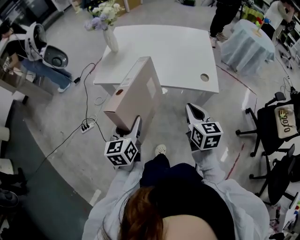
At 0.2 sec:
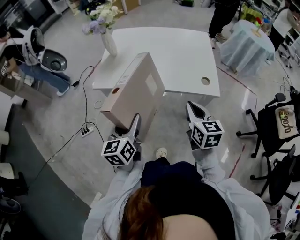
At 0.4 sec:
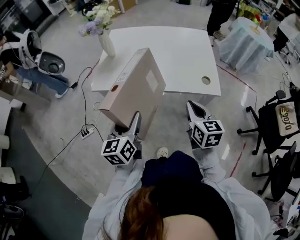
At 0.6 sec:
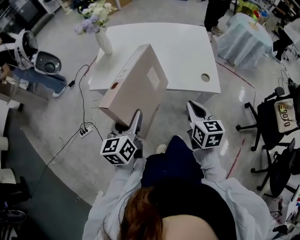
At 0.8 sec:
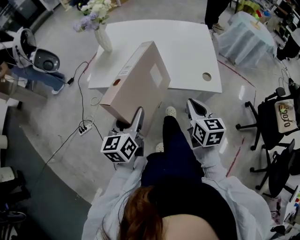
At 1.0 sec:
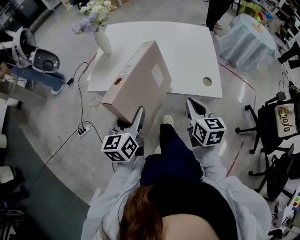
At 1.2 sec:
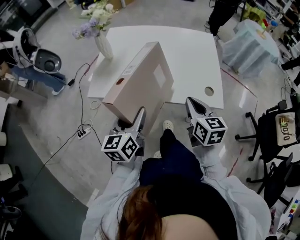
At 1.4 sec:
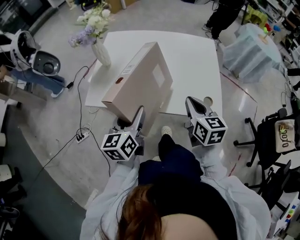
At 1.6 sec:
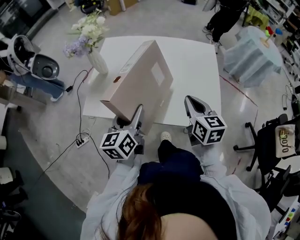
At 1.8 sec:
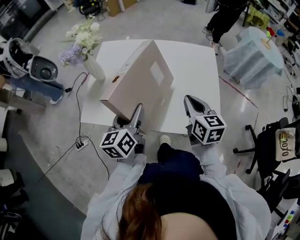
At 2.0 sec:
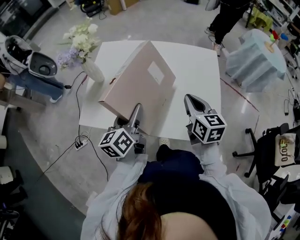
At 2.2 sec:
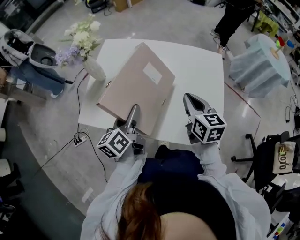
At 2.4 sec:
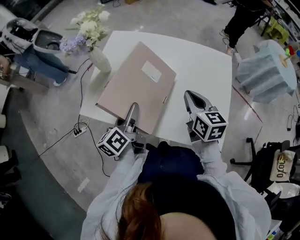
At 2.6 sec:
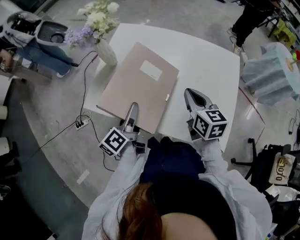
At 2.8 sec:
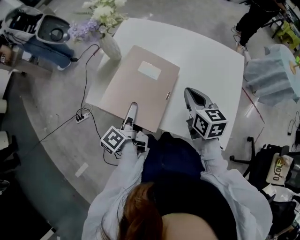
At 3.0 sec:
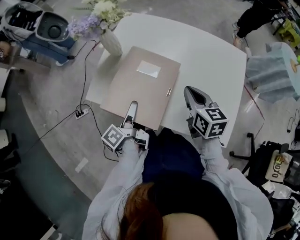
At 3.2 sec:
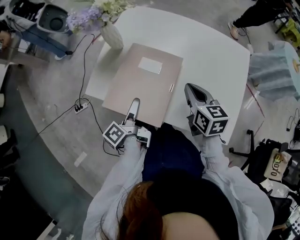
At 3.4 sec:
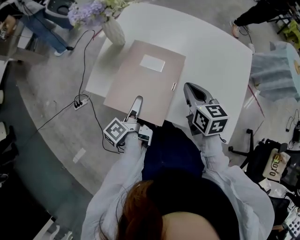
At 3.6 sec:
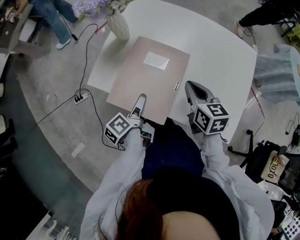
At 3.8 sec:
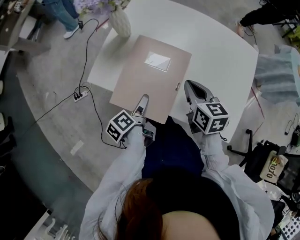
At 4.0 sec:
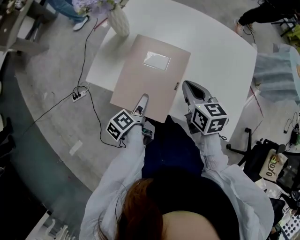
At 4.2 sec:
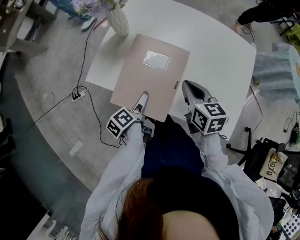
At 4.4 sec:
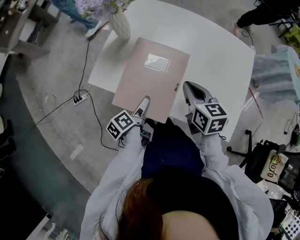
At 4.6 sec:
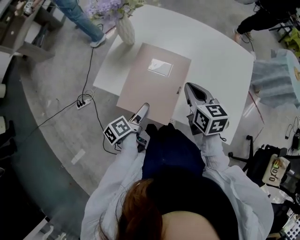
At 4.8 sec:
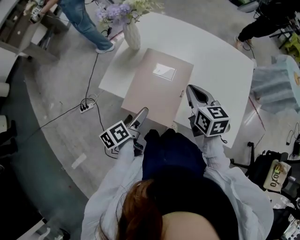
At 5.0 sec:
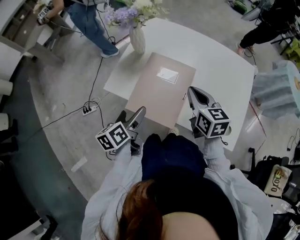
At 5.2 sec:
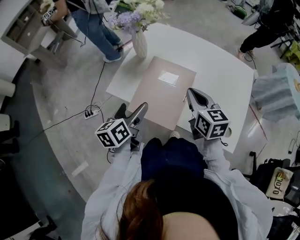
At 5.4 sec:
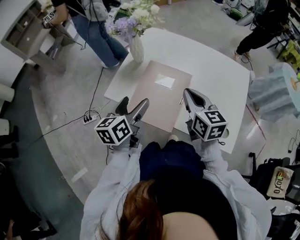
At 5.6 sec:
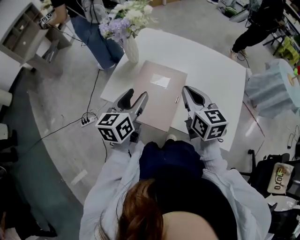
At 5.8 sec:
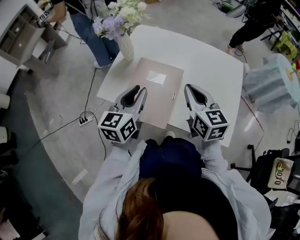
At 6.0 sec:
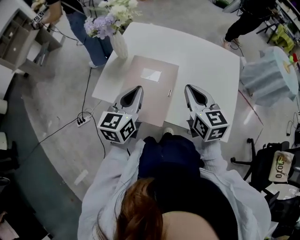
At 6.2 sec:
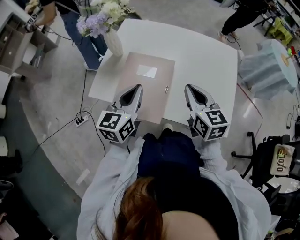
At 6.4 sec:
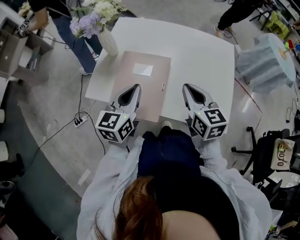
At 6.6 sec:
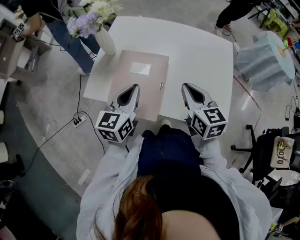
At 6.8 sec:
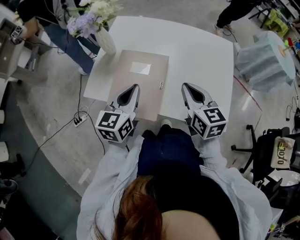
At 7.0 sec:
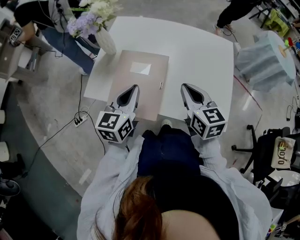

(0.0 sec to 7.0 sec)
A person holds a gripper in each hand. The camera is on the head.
0.0 sec - 1.4 sec: The two grippers go some 20 cm forward.
1.4 sec - 2.8 sec: The left gripper moves forward and downward, roughly 15 cm, and rolls counterclockwise, seen from behind, by about 50 degrees. Meanwhile the right gripper travels forward by about 20 cm.
2.8 sec - 4.2 sec: The left gripper goes some 10 cm downward, rotates approximately 20 degrees, and opens. The right gripper goes roughly 5 cm to the left.
4.2 sec - 5.6 sec: The right gripper is displaced upward by roughly 10 cm. Meanwhile the left gripper is displaced upward by some 25 cm, twists some 60 degrees clockwise, seen from behind, and closes.
5.6 sec - 7.0 sec: The grippers both shift to the right by some 5 cm. The left gripper closes up.

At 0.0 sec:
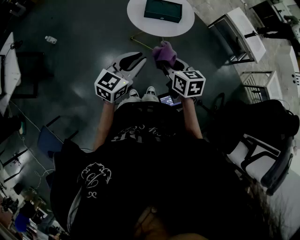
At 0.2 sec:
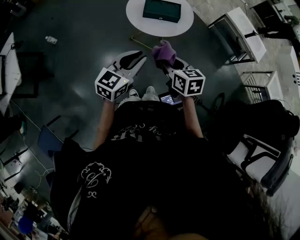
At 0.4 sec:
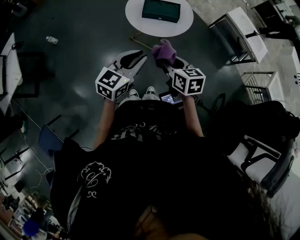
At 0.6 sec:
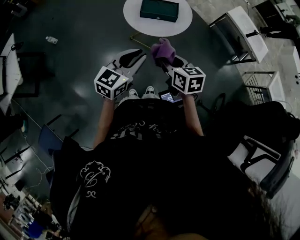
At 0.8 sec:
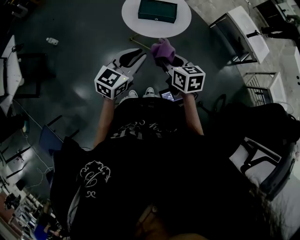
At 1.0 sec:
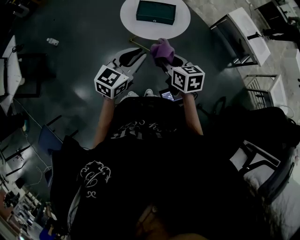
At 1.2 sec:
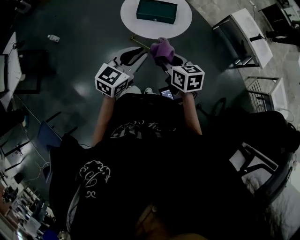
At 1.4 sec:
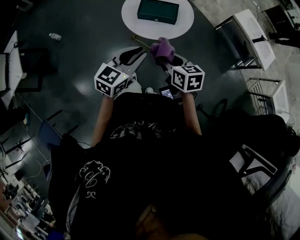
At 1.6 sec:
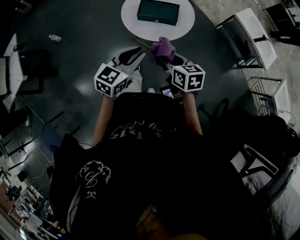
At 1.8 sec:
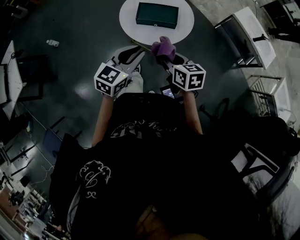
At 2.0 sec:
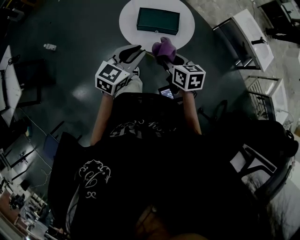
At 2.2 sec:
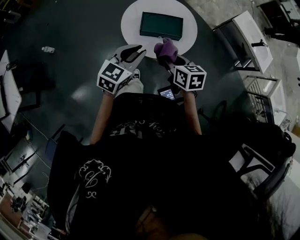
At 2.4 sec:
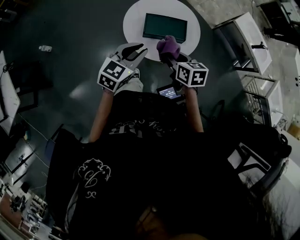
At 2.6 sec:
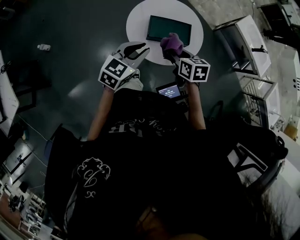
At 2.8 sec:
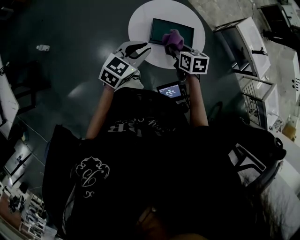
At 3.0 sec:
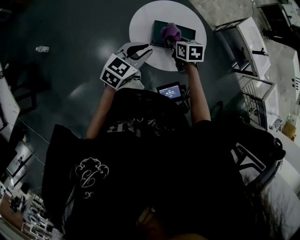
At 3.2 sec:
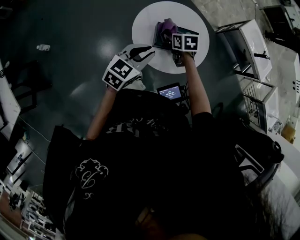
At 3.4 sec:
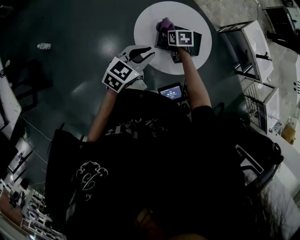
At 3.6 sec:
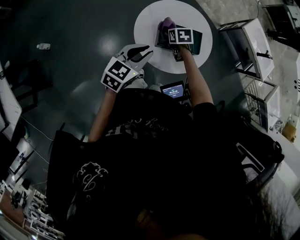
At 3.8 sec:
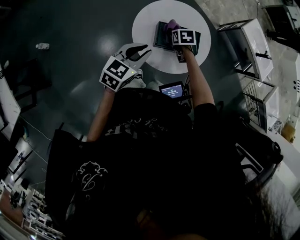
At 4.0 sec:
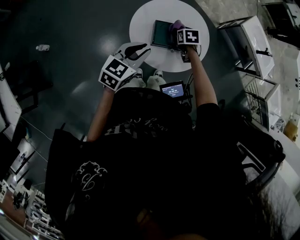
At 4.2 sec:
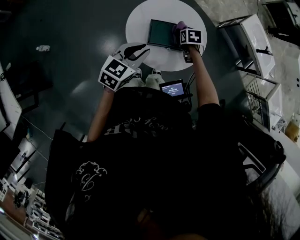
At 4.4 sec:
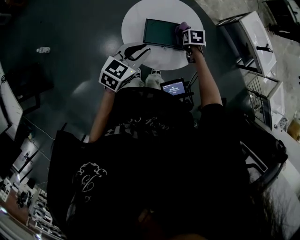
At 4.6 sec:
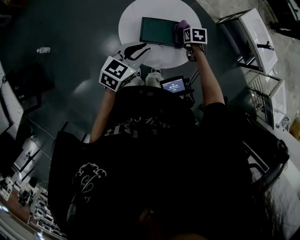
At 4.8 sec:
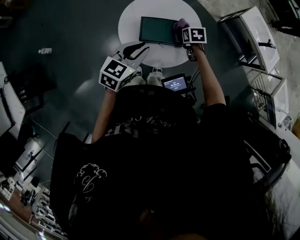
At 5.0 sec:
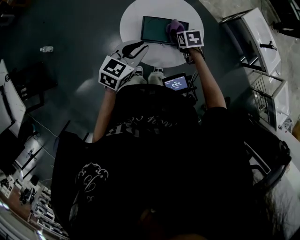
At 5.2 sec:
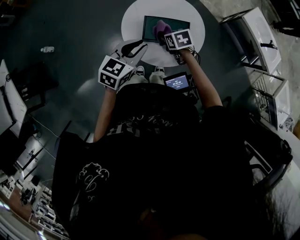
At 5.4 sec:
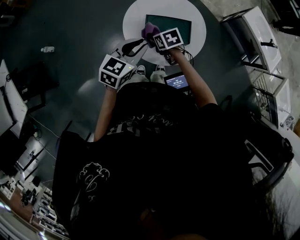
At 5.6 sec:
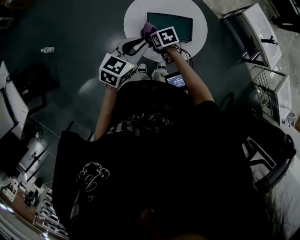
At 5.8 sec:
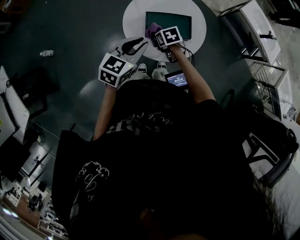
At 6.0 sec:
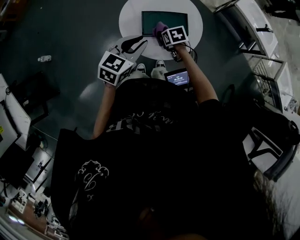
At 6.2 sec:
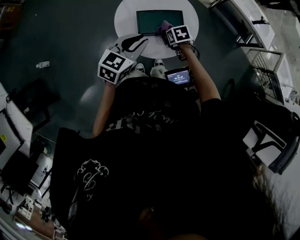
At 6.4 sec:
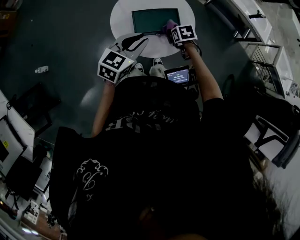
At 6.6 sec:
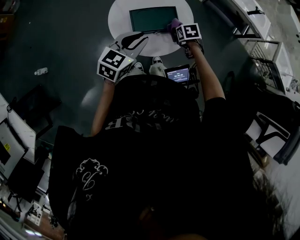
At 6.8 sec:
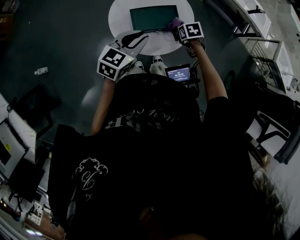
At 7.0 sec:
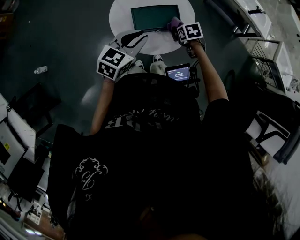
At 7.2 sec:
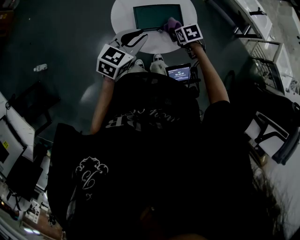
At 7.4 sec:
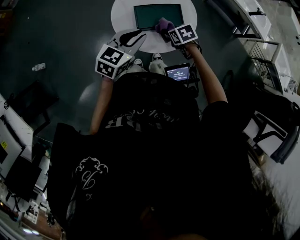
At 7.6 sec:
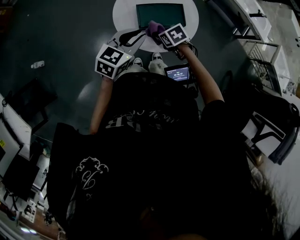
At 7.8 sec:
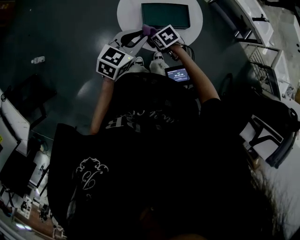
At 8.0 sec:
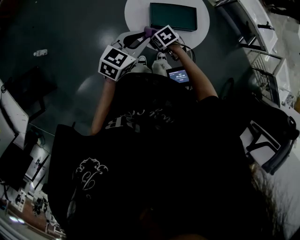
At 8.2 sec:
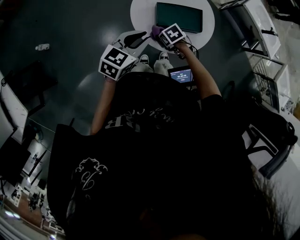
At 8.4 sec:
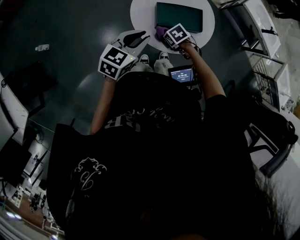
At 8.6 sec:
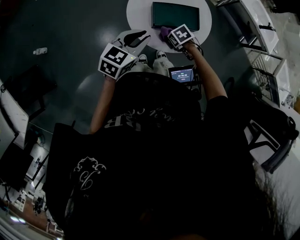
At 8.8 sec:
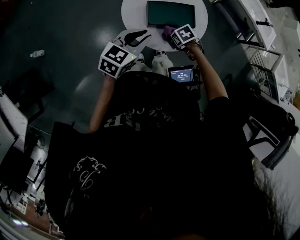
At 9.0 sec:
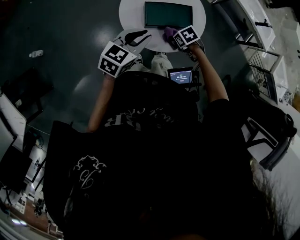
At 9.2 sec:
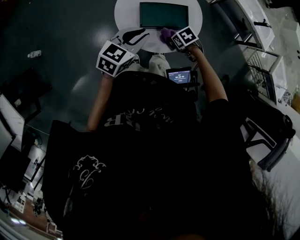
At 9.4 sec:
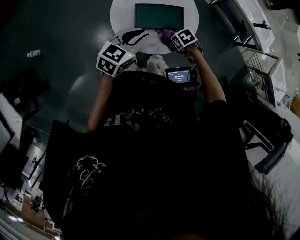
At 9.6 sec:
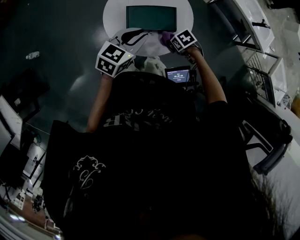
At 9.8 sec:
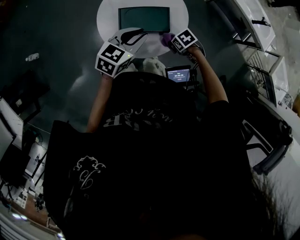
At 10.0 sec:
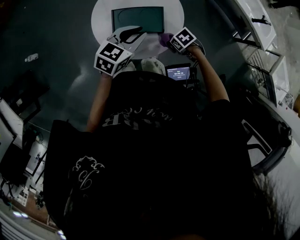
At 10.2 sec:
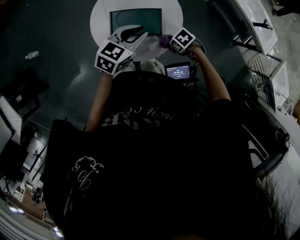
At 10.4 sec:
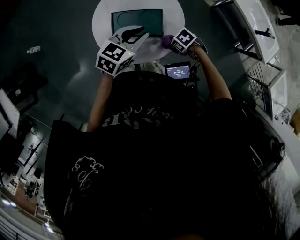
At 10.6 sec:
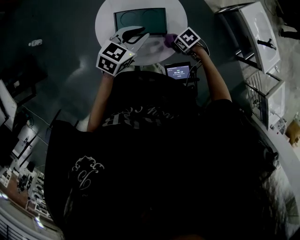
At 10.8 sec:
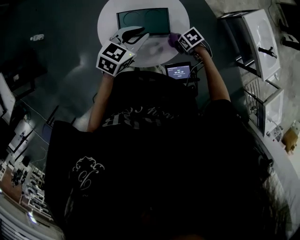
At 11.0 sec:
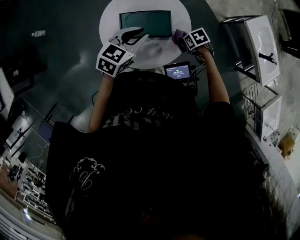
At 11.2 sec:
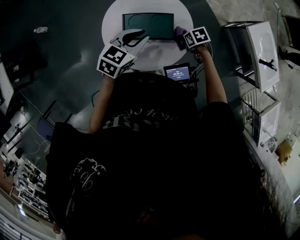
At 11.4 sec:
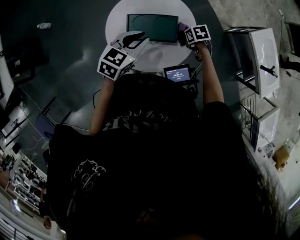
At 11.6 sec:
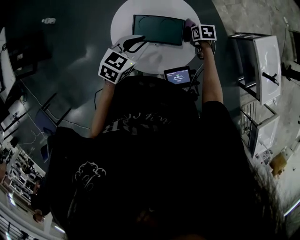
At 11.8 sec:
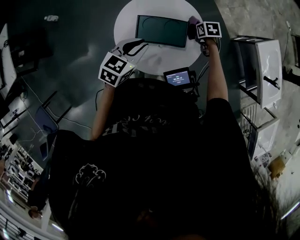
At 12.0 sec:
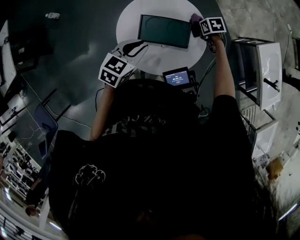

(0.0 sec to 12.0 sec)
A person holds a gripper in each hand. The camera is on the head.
0.0 sec - 1.6 sec: The two grippers go approximately 10 cm forward and to the right.
1.6 sec - 3.0 sec: The left gripper shifts approximately 25 cm forward and to the left. Meanwhile the right gripper goes about 30 cm forward.
3.0 sec - 4.4 sec: The right gripper moves to the right, downward and forward, some 15 cm, and changes its angle by about 20 degrees.
4.4 sec - 6.0 sec: The right gripper heads to the left and backward, covering about 15 cm.
6.0 sec - 7.6 sec: The right gripper travels to the right and back again, roughly 10 cm each way.
7.6 sec - 9.0 sec: The right gripper changes place by roughly 10 cm.
9.0 sec - 10.4 sec: The left gripper shifts by some 20 cm, while the right gripper changes place by about 15 cm, and rotates approximately 20 degrees.
10.4 sec - 12.0 sec: The left gripper ends up roughly 10 cm from where it was, and rotates some 20 degrees, while the right gripper changes place by some 25 cm.

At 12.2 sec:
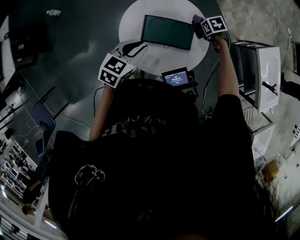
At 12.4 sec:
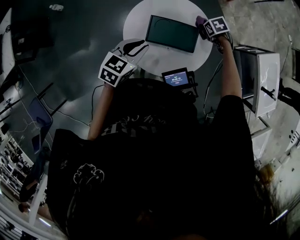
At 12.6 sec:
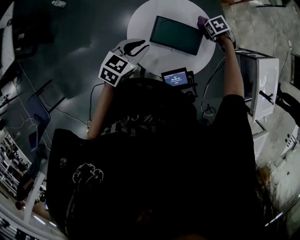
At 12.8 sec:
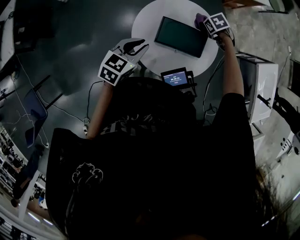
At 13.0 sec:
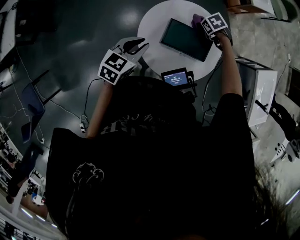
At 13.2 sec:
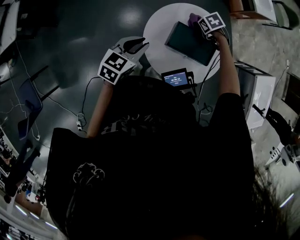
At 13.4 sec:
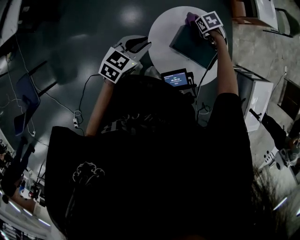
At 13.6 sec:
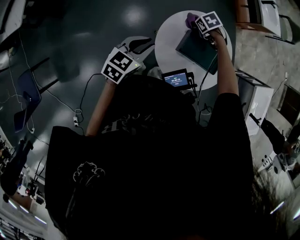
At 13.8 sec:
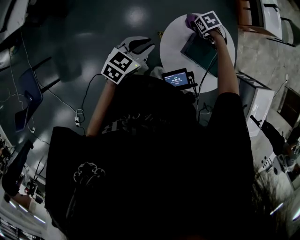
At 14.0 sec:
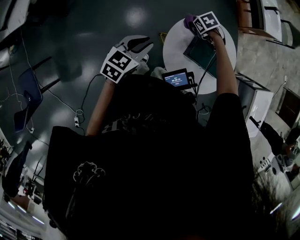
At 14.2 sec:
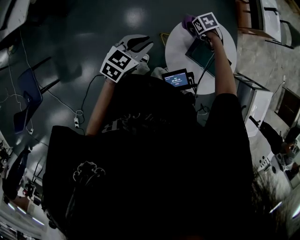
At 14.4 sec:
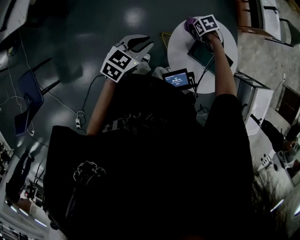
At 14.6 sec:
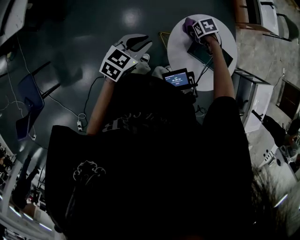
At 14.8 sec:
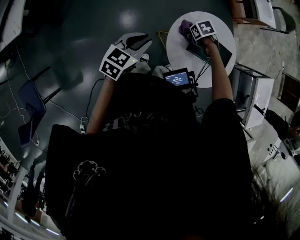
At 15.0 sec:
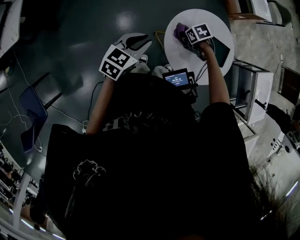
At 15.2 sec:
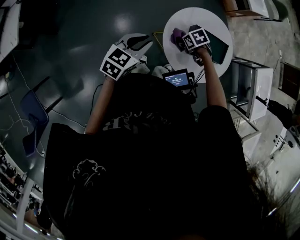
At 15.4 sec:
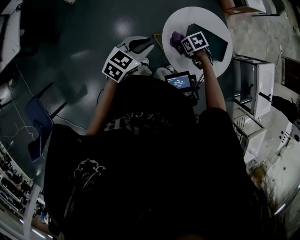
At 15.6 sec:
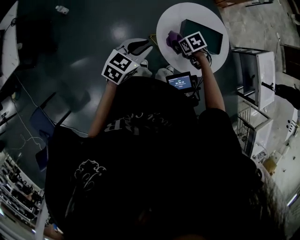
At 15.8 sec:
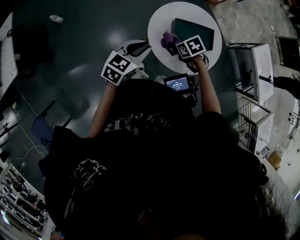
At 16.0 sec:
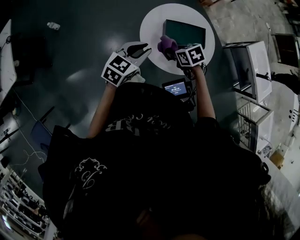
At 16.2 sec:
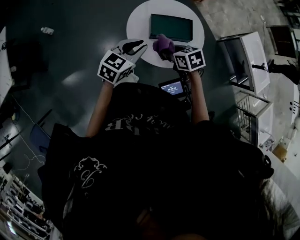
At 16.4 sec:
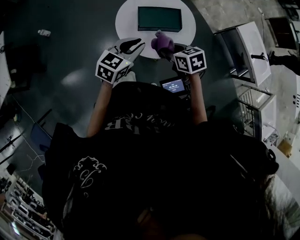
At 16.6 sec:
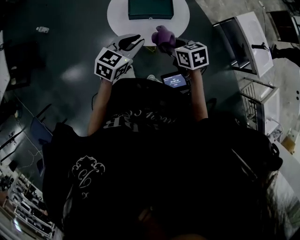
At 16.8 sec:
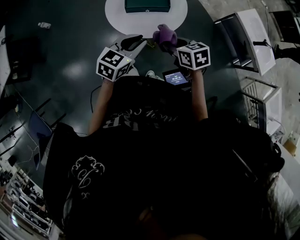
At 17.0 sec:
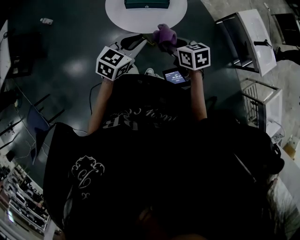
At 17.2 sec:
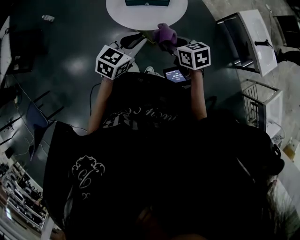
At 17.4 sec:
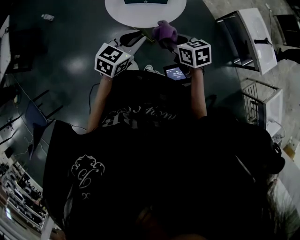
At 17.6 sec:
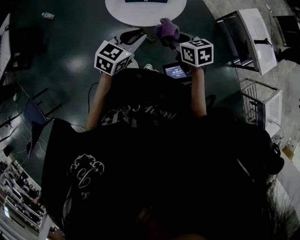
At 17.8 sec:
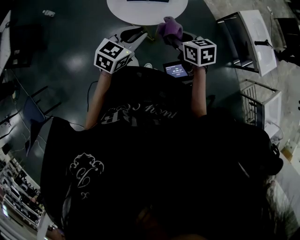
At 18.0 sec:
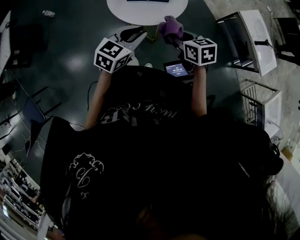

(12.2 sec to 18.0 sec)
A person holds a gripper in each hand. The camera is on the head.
12.2 sec - 13.6 sec: The left gripper ends up approximately 25 cm from where it was; the right gripper moves approximately 35 cm, and turns by some 30 degrees.
13.6 sec - 15.0 sec: The right gripper shifts by some 10 cm.
15.0 sec - 16.6 sec: The right gripper shifts by some 35 cm, and tilts its fingers some 30 degrees upward. Meanwhile the left gripper ends up approximately 30 cm from where it was.
16.6 sec - 18.0 sec: The two grippers go about 10 cm backward and to the right.
